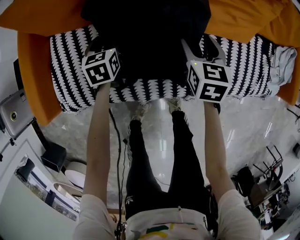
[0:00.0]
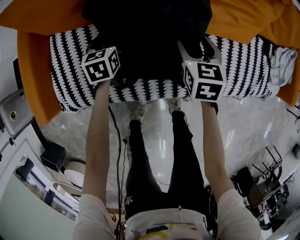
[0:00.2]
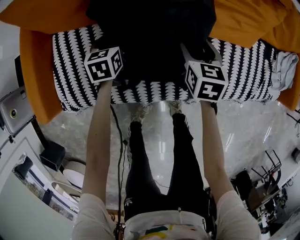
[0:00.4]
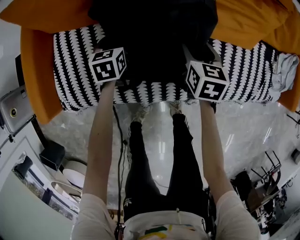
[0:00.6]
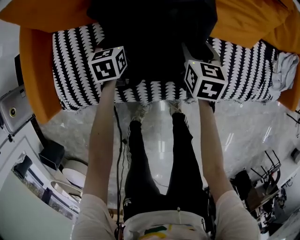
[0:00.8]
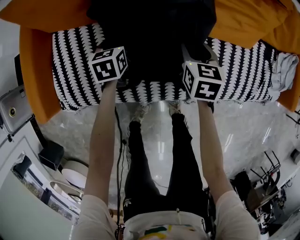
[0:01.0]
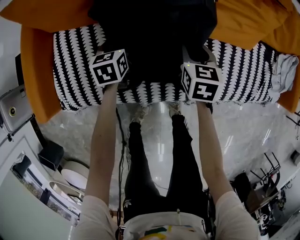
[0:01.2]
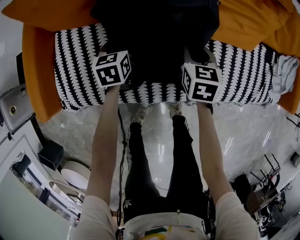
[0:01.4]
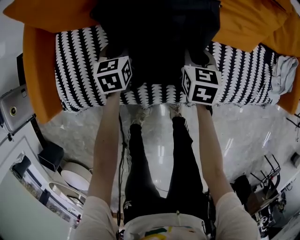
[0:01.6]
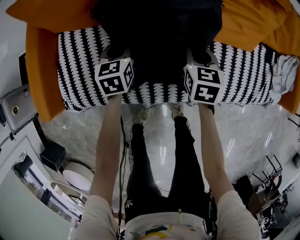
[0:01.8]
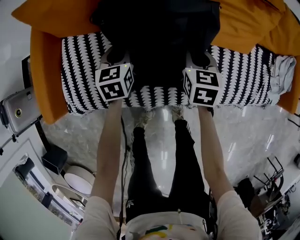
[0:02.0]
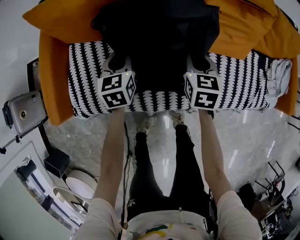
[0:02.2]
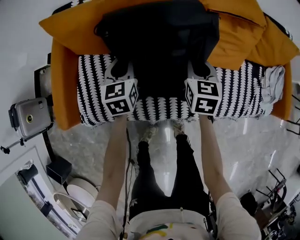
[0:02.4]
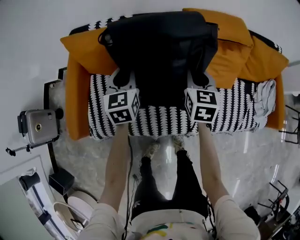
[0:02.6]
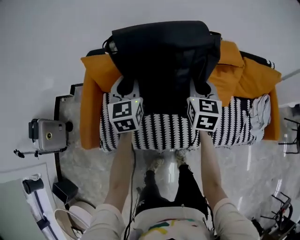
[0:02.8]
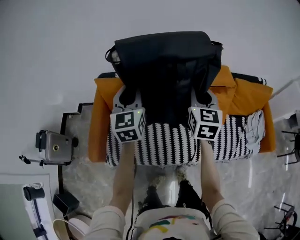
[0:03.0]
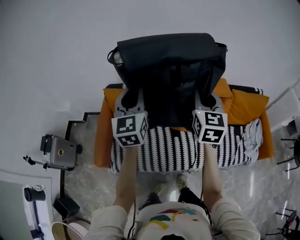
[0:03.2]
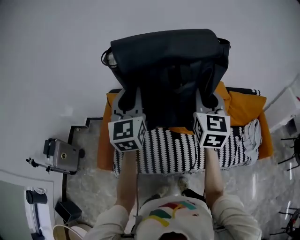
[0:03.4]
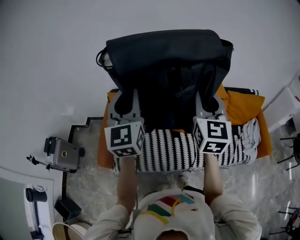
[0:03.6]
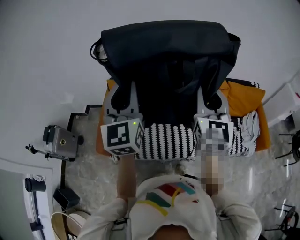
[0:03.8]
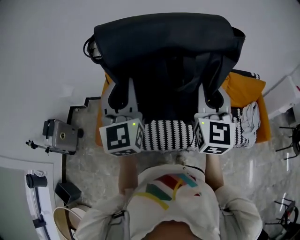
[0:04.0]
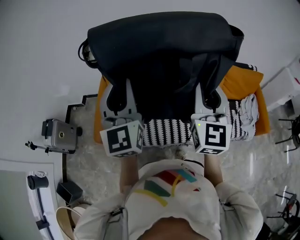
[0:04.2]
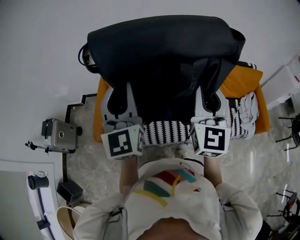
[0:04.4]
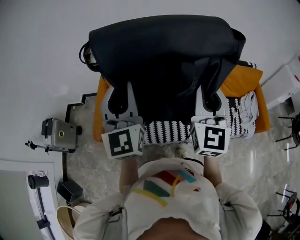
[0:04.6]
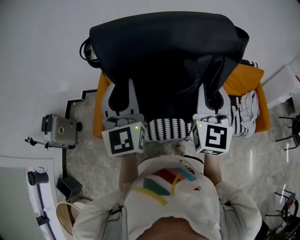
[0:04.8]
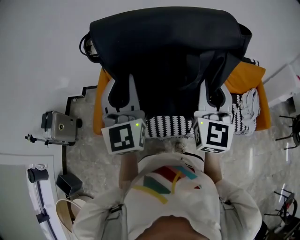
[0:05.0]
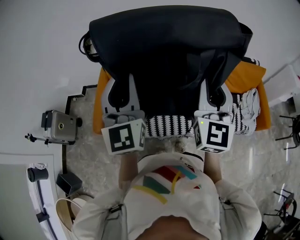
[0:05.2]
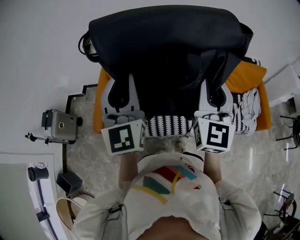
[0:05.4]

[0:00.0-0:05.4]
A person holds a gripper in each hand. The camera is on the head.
0:00.0 to 0:01.4: The right gripper closes up, while the left gripper closes its fingers.
0:01.4 to 0:02.8: Both grippers travel together upward, about 40 cm. The left gripper angles its fingers upward, by some 30 degrees, while the right gripper rotates roughly 20 degrees.
0:02.8 to 0:04.0: The two grippers go roughly 35 cm upward and backward. The left gripper turns by roughly 30 degrees. Meanwhile the right gripper swivels roughly 30 degrees.
0:04.0 to 0:05.4: The grippers stay close to where they were, moving slightly.

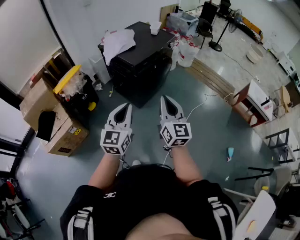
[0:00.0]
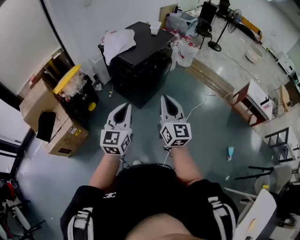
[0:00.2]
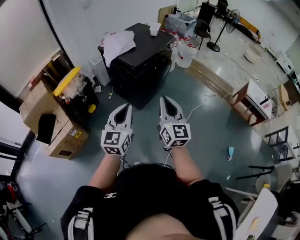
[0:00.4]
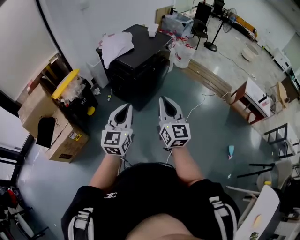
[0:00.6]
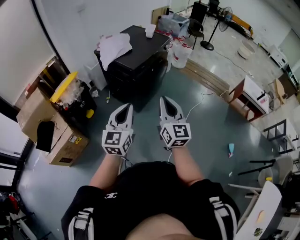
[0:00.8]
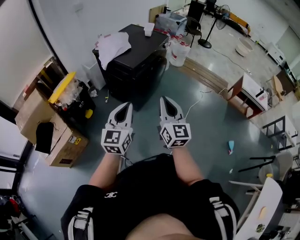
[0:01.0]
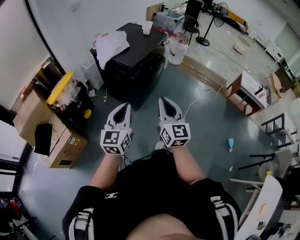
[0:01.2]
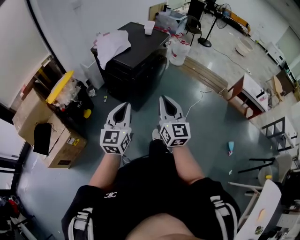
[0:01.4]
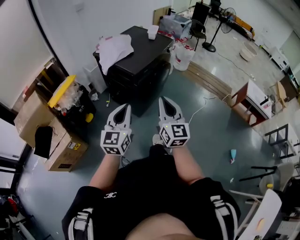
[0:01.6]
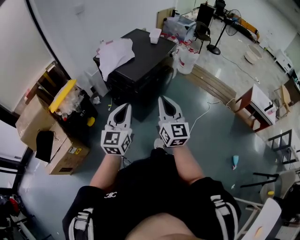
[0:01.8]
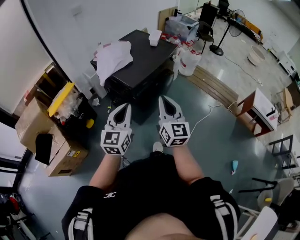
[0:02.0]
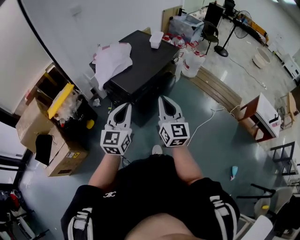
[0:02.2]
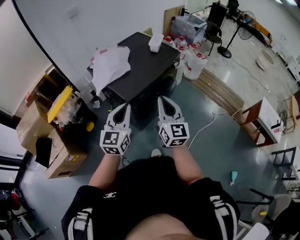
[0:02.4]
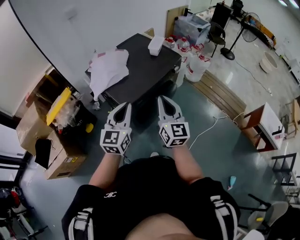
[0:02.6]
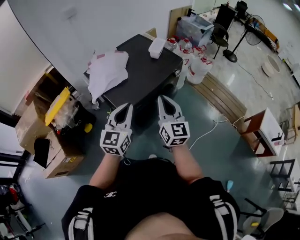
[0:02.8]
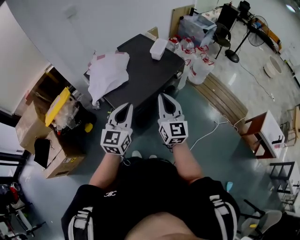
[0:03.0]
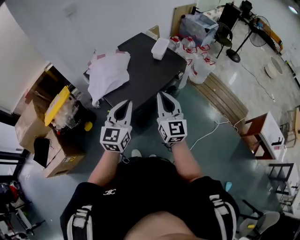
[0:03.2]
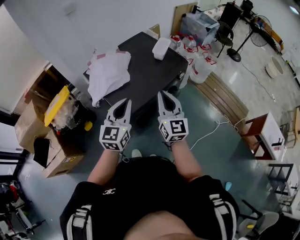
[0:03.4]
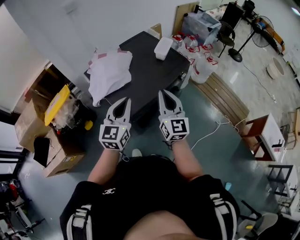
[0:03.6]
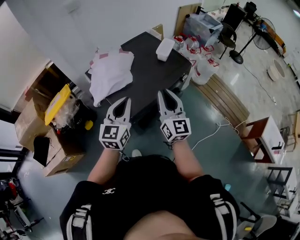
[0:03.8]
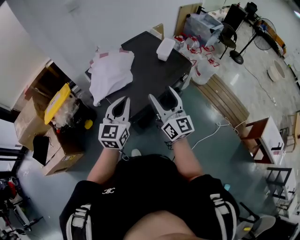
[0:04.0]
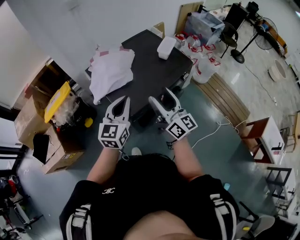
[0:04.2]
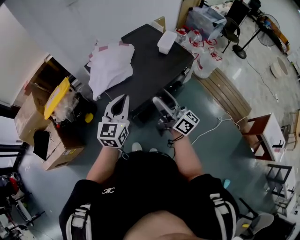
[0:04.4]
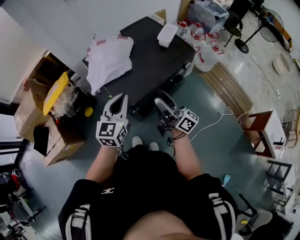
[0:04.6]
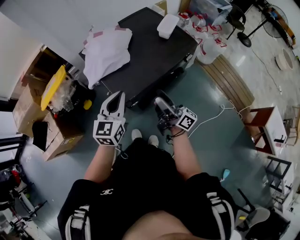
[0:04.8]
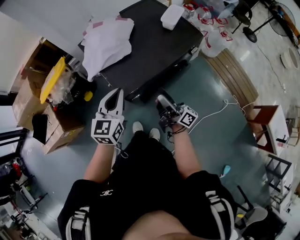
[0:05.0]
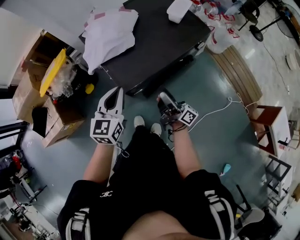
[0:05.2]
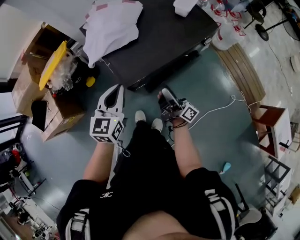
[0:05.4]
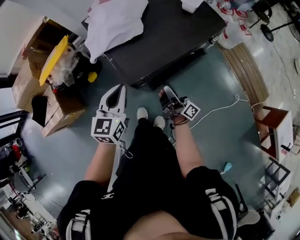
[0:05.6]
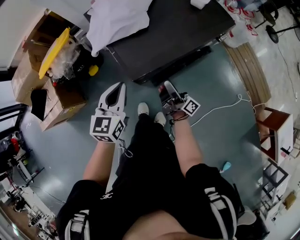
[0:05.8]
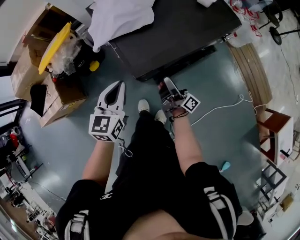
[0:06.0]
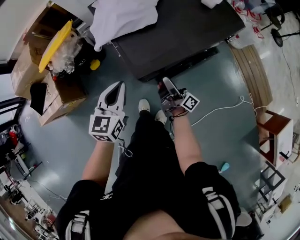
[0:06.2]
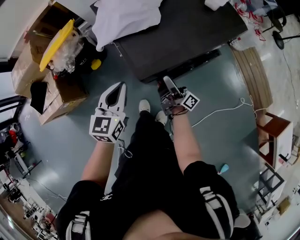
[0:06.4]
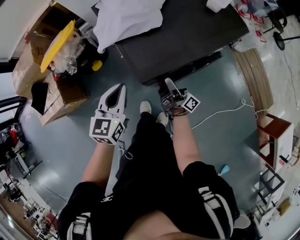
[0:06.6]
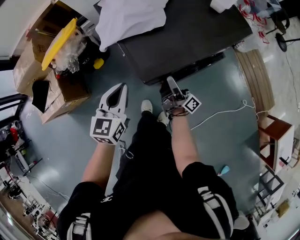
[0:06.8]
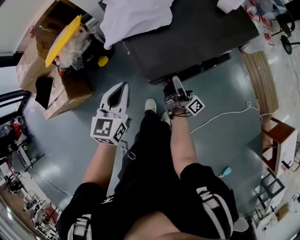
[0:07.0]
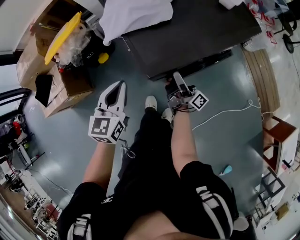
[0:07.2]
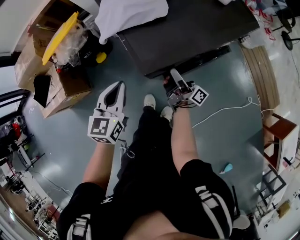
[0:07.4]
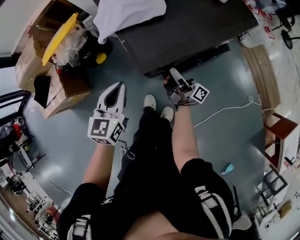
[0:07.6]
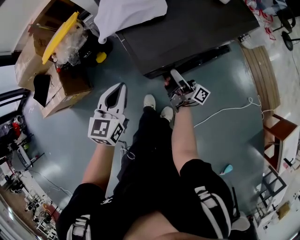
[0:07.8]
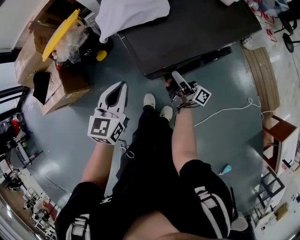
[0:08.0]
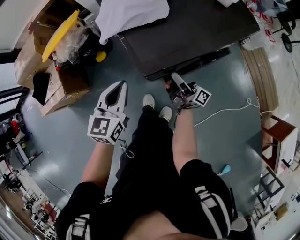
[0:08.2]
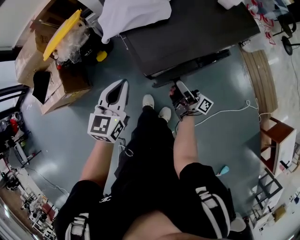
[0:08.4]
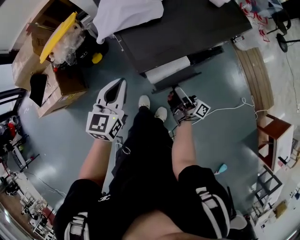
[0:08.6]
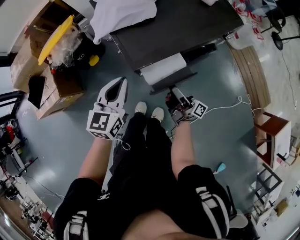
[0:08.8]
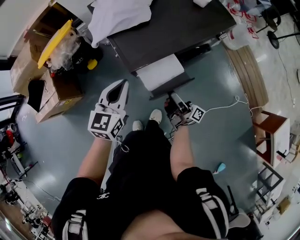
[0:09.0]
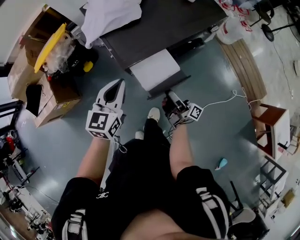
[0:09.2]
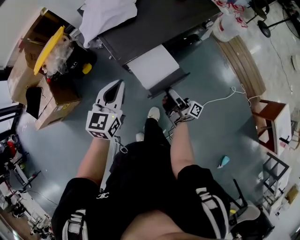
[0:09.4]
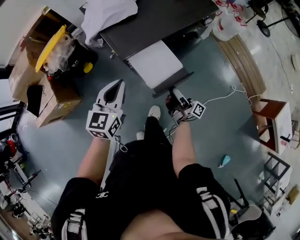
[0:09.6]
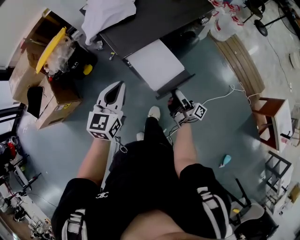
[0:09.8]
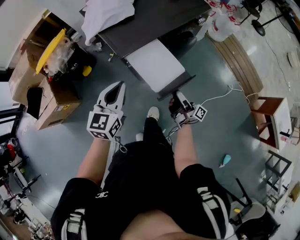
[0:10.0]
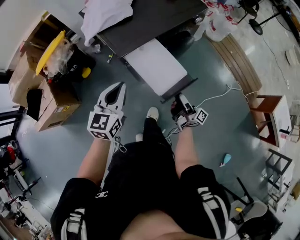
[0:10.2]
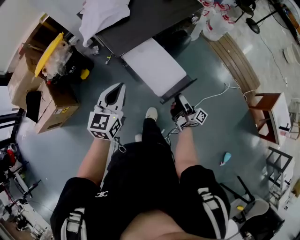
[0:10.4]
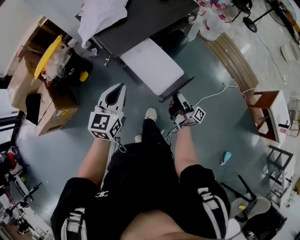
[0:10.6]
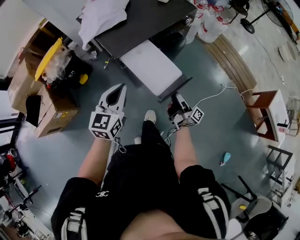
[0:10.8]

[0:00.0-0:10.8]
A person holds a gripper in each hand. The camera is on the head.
0:00.0 to 0:01.6: Both grippers travel together forward and to the left, approximately 10 cm.
0:01.6 to 0:03.0: Both grippers move forward, about 40 cm.
0:03.0 to 0:04.6: The right gripper heads downward, covering roughly 5 cm, rotates around the line of its fingers by some 60 degrees, clockwise from behind, and opens; the left gripper heads forward, covering approximately 5 cm.
0:04.6 to 0:06.2: The right gripper goes approximately 25 cm downward, and swivels approximately 30 degrees. The left gripper goes some 20 cm downward and to the left.
0:06.2 to 0:07.8: The grippers stay close to where they were, moving slightly.
0:07.8 to 0:09.2: The left gripper shifts approximately 5 cm to the right. The right gripper heads backward and to the right, covering about 15 cm.
0:09.2 to 0:10.8: The left gripper moves backward, approximately 10 cm; the right gripper is displaced backward and to the right by some 15 cm.

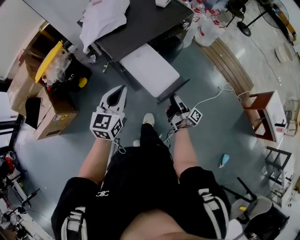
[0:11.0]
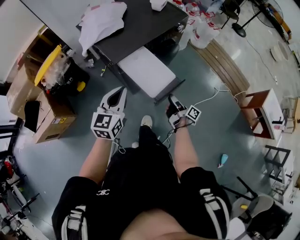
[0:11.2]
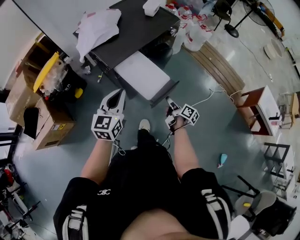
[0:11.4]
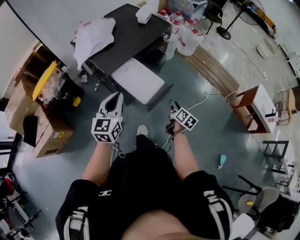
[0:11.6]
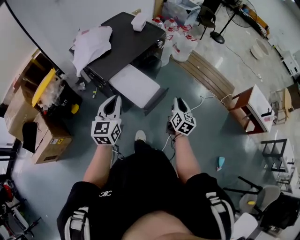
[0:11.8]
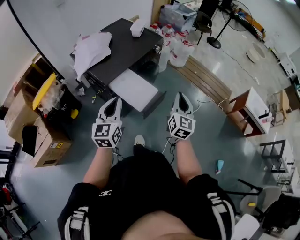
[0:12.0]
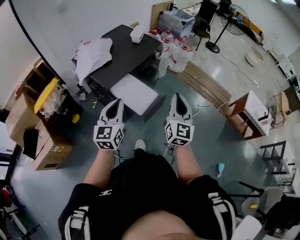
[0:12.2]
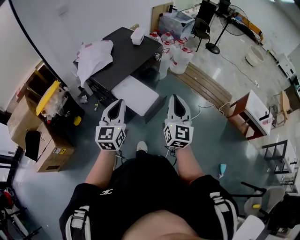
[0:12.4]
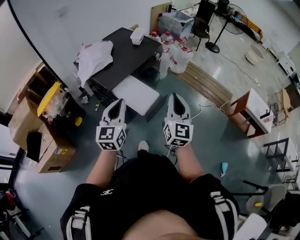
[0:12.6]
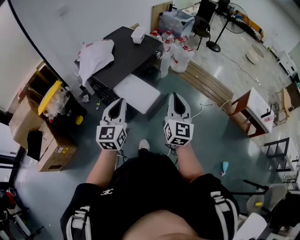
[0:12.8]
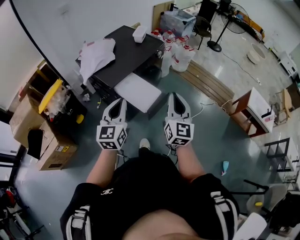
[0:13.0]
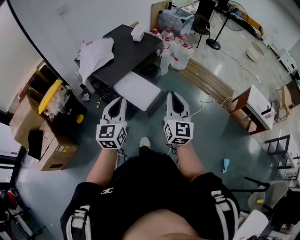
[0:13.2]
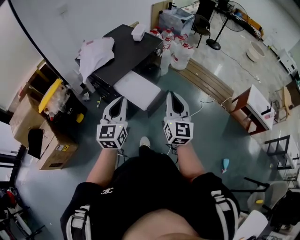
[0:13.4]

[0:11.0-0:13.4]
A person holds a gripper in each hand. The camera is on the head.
0:11.0 to 0:12.2: The left gripper heads upward and backward, covering roughly 15 cm. Meanwhile the right gripper shifts some 35 cm upward, rotates around the line of its fingers by approximately 100 degrees, counterclockwise from behind, and closes.
0:12.2 to 0:13.4: The right gripper moves roughly 5 cm.

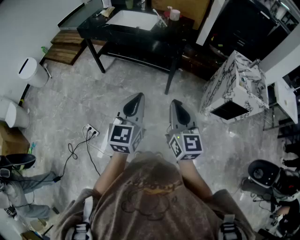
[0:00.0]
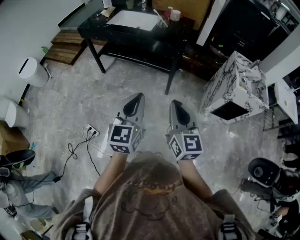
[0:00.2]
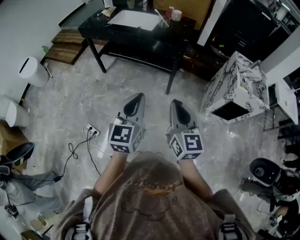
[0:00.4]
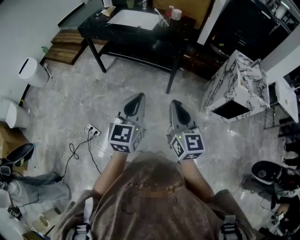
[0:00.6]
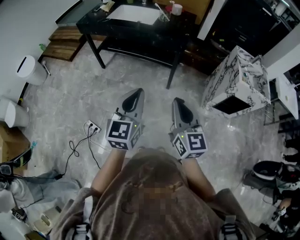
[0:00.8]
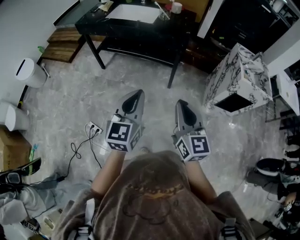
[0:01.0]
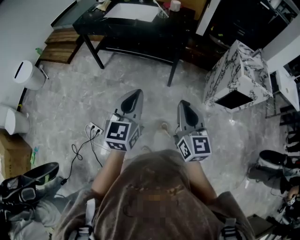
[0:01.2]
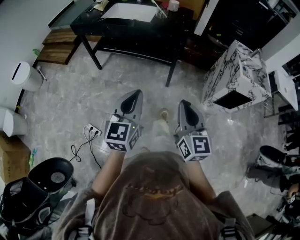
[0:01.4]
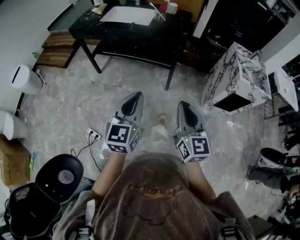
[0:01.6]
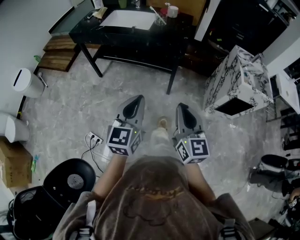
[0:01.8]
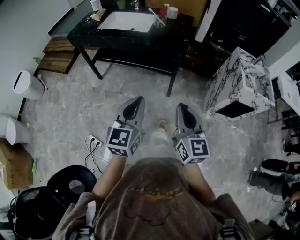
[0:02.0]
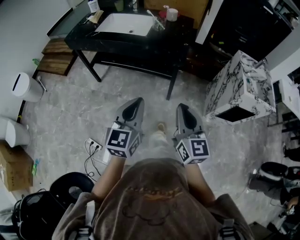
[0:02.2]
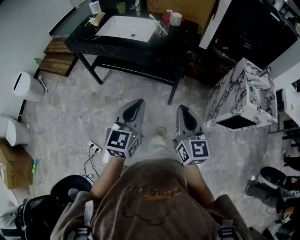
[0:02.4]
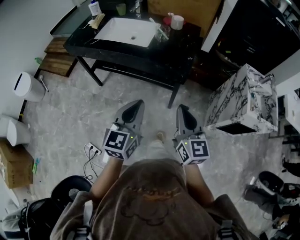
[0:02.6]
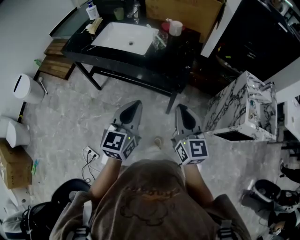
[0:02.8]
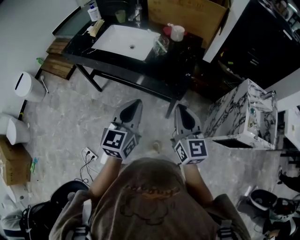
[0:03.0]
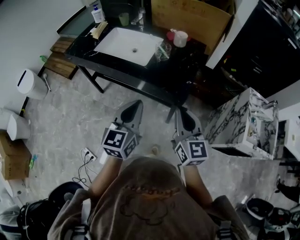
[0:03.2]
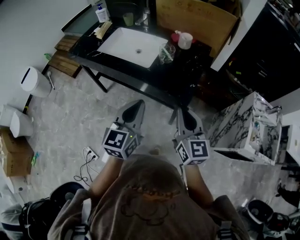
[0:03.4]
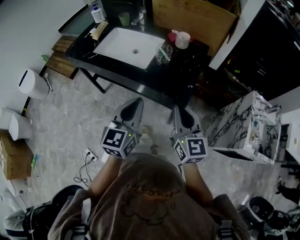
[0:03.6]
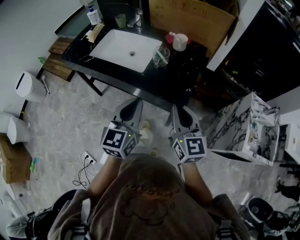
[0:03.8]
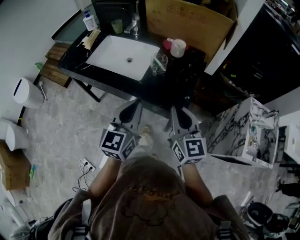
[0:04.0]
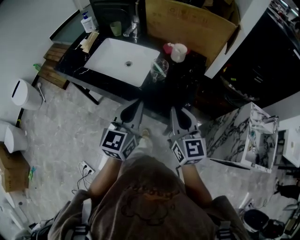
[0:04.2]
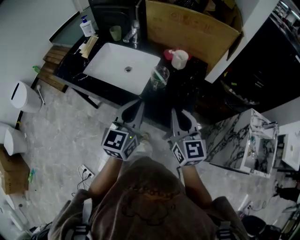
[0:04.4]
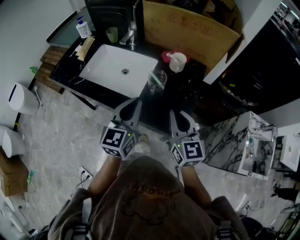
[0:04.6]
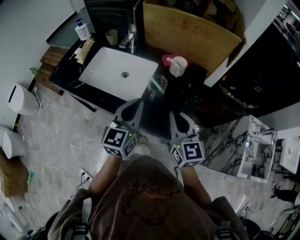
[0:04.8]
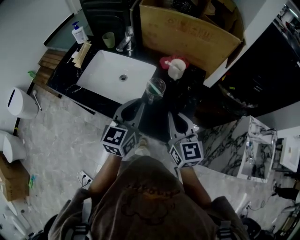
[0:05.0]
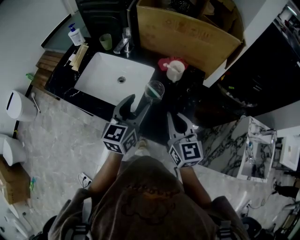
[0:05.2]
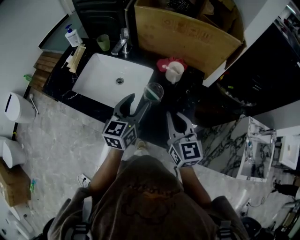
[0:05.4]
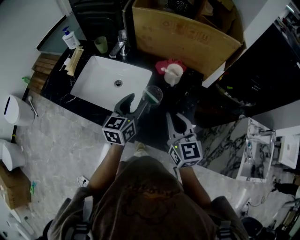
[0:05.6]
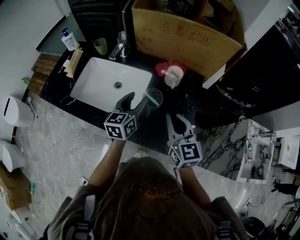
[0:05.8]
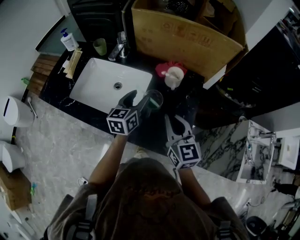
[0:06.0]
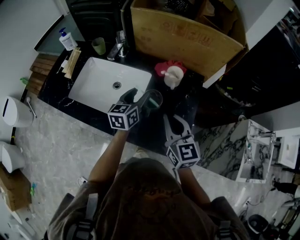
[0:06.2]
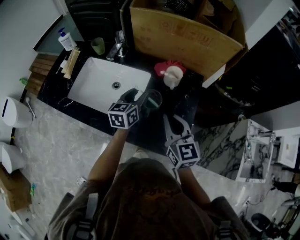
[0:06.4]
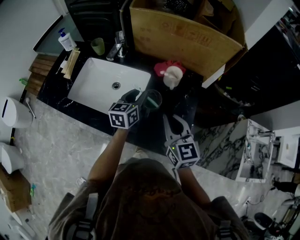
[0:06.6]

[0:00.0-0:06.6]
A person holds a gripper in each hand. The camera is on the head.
0:00.0 to 0:01.6: The left gripper changes place by approximately 5 cm.
0:01.6 to 0:03.2: The two grippers go some 35 cm forward.
0:03.2 to 0:05.0: The two grippers go approximately 25 cm forward.
0:05.0 to 0:06.6: The left gripper is displaced forward and downward by approximately 20 cm, and opens up. The right gripper heads forward, covering approximately 5 cm.
